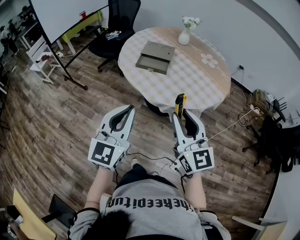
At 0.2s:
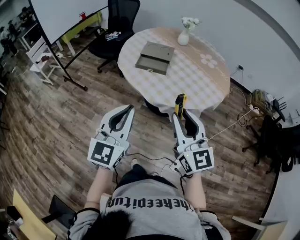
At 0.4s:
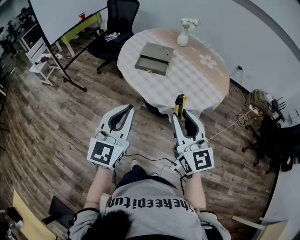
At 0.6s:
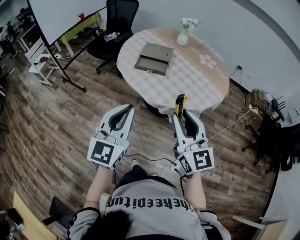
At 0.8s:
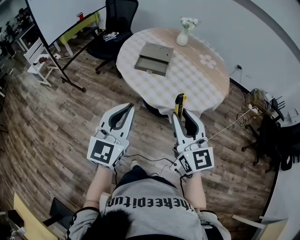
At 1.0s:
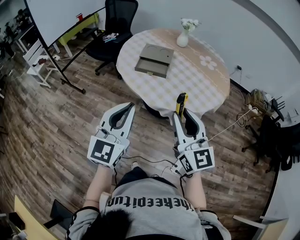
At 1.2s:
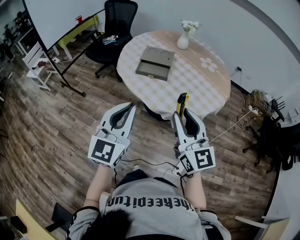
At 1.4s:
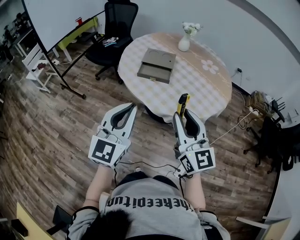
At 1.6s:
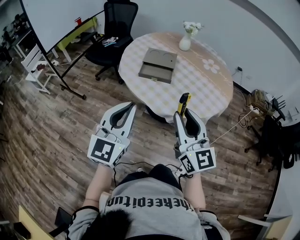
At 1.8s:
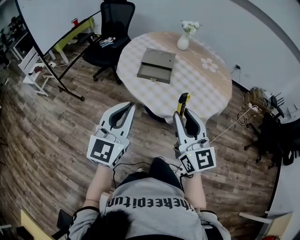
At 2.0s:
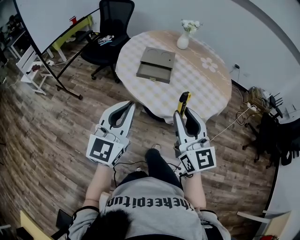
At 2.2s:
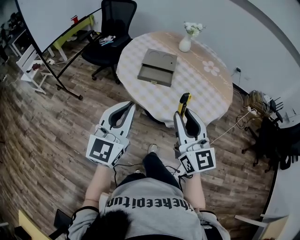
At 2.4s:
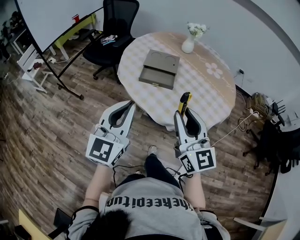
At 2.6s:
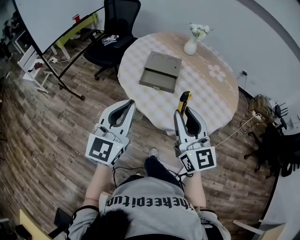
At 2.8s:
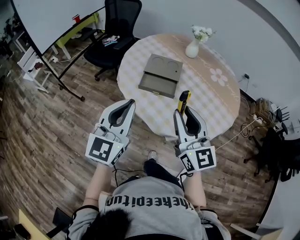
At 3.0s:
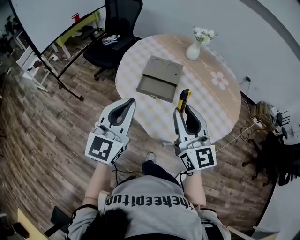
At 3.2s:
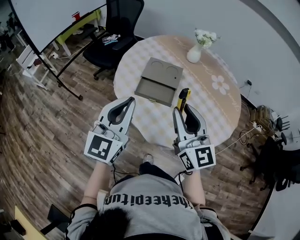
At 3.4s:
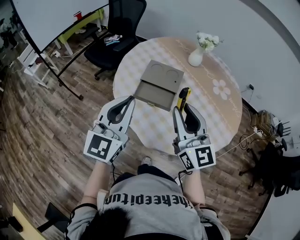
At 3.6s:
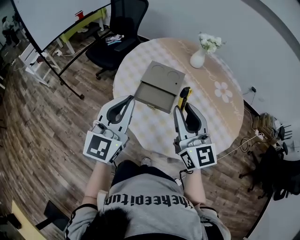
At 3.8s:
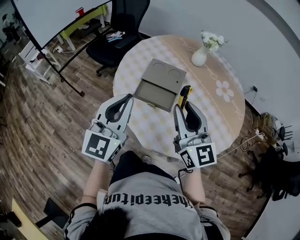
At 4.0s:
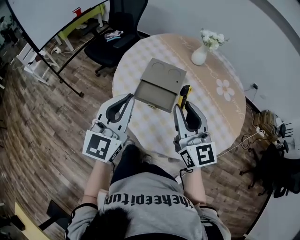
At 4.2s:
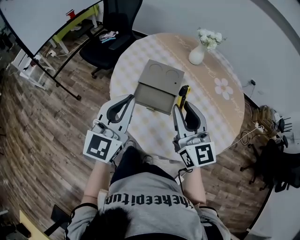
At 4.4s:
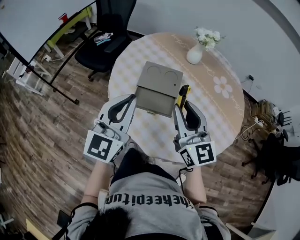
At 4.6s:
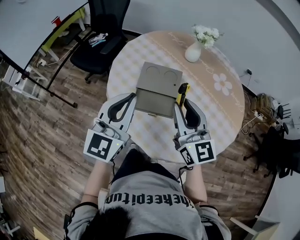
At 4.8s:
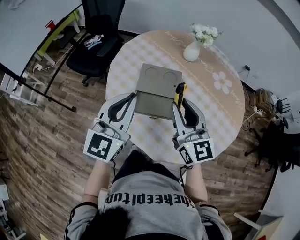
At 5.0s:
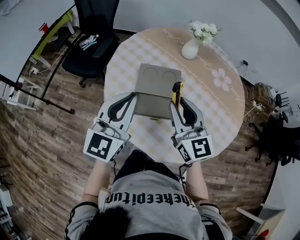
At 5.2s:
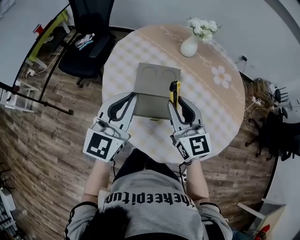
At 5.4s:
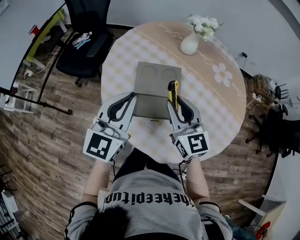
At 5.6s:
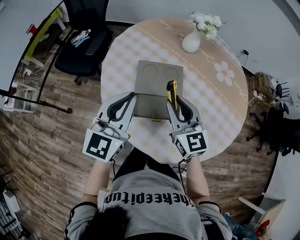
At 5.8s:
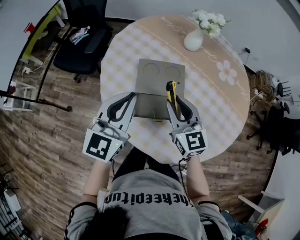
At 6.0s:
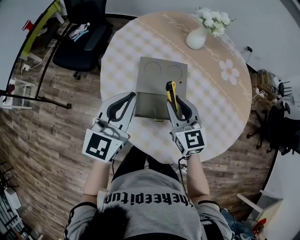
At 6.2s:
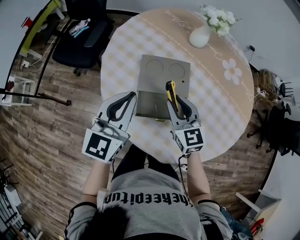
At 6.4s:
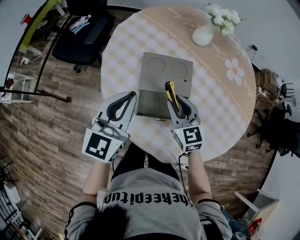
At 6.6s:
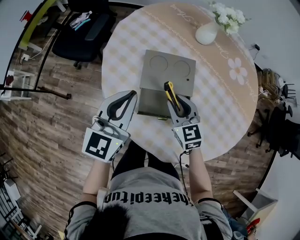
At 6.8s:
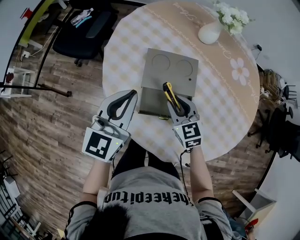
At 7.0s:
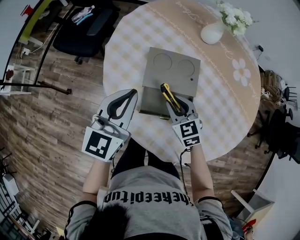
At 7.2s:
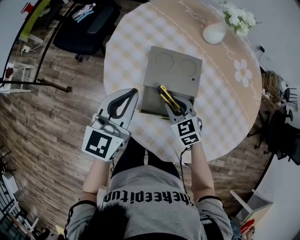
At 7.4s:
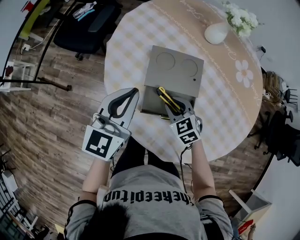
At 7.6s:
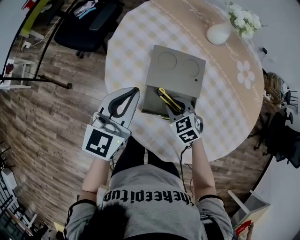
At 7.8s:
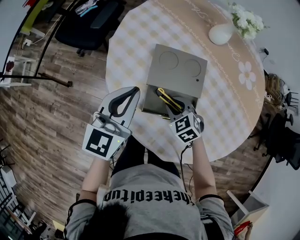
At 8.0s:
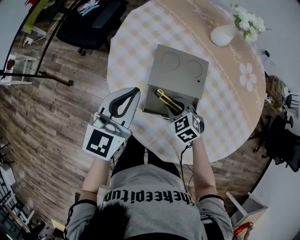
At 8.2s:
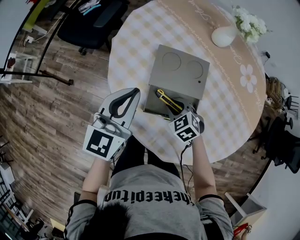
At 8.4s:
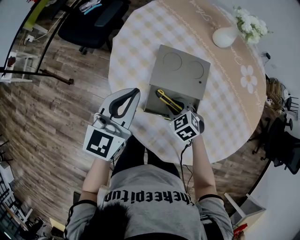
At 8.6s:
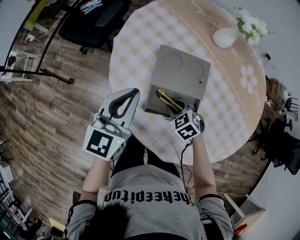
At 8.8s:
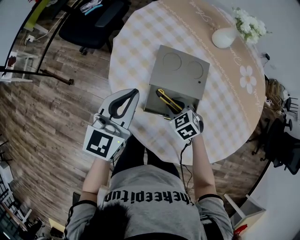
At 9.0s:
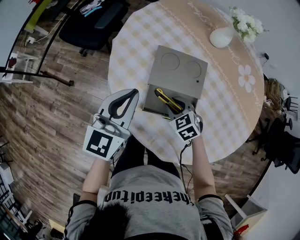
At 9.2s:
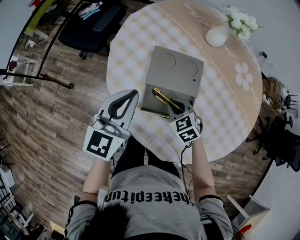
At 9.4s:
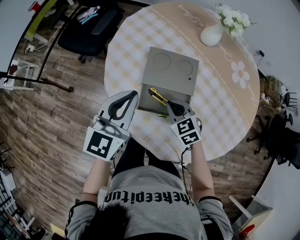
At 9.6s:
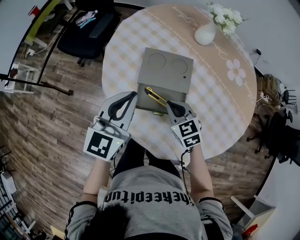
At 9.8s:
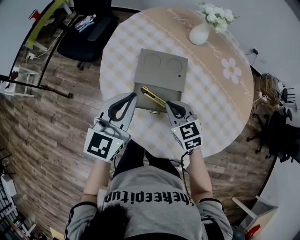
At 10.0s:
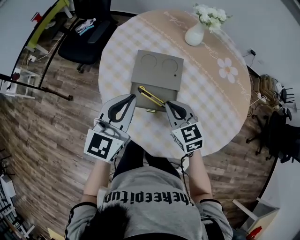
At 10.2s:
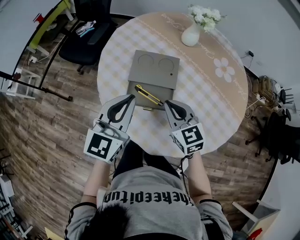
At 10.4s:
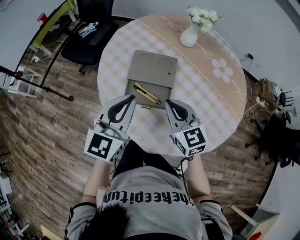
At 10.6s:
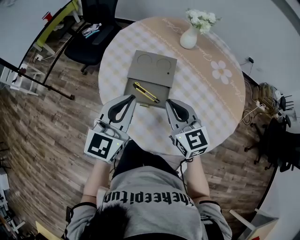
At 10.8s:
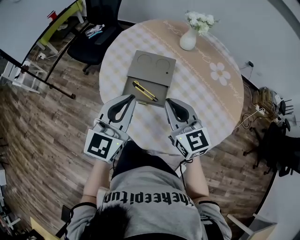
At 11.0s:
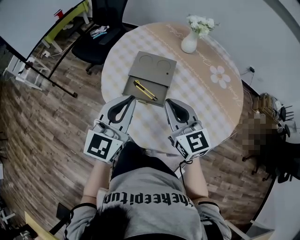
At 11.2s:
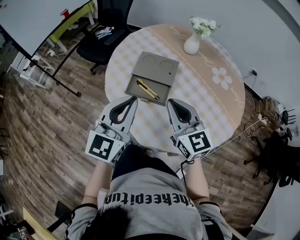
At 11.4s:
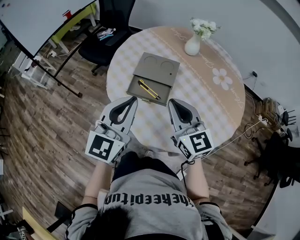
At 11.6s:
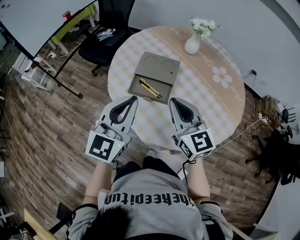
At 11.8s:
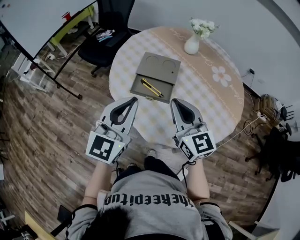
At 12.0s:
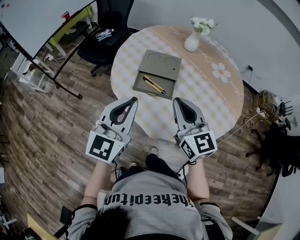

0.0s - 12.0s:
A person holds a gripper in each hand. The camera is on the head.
0.0s - 1.6s: The left gripper shifts approximately 10 cm forward and to the left, while the right gripper moves forward, some 5 cm.
1.6s - 3.0s: Both grippers move forward, some 20 cm.
3.0s - 4.4s: Both grippers move forward, some 15 cm.
4.4s - 6.0s: The right gripper travels downward and forward by some 20 cm, and swivels about 20 degrees, while the left gripper shifts some 15 cm forward and downward.
6.0s - 7.6s: The left gripper is displaced downward by roughly 5 cm. Meanwhile the right gripper heads downward, covering some 15 cm, and angles its fingers downward, by roughly 40 degrees.
7.6s - 9.0s: The grippers make only small movements.
9.0s - 10.4s: The right gripper is displaced upward and backward by about 20 cm, points its fingers approximately 40 degrees further upward, and closes up. The left gripper goes about 15 cm backward, to the right and upward.
10.4s - 12.0s: The right gripper is displaced backward and upward by roughly 15 cm; the left gripper moves backward, some 15 cm.

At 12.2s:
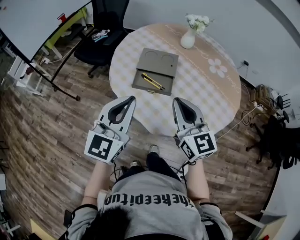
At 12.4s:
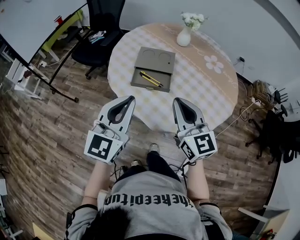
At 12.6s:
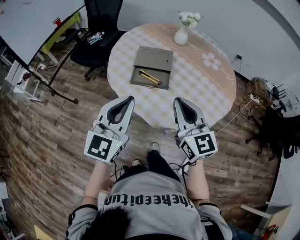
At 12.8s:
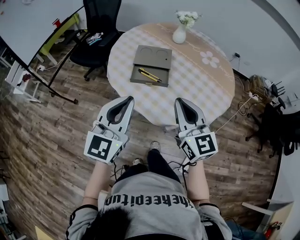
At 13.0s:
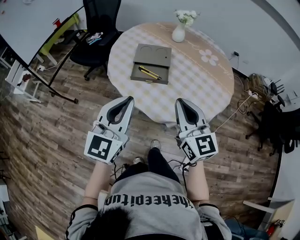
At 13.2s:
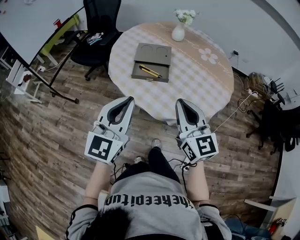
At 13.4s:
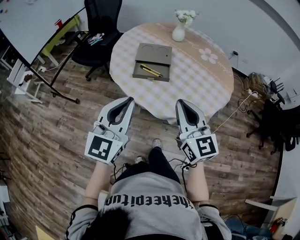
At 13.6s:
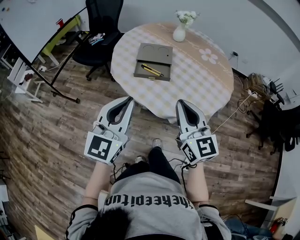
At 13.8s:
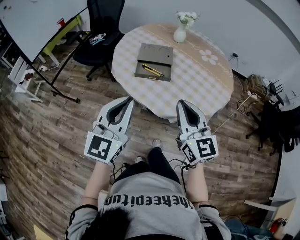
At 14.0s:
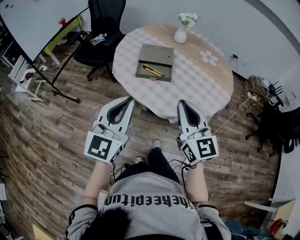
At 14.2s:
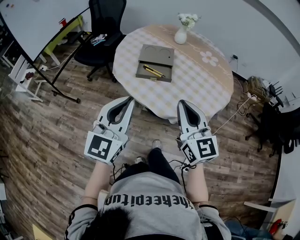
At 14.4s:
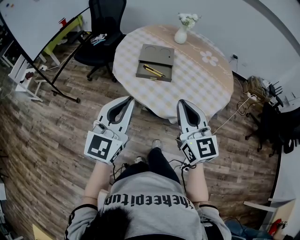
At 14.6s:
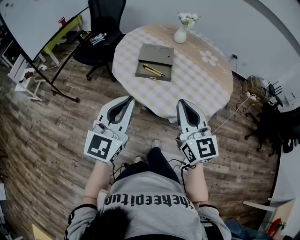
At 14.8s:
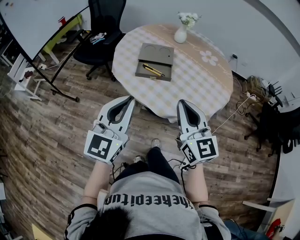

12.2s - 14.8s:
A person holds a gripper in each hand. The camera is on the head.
12.2s - 13.4s: The two grippers go about 10 cm backward.
13.4s - 14.8s: The grippers make only small movements.

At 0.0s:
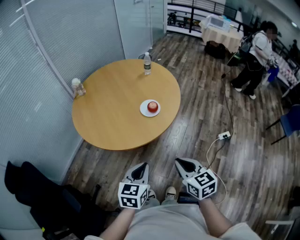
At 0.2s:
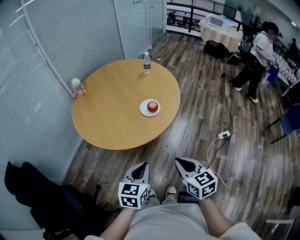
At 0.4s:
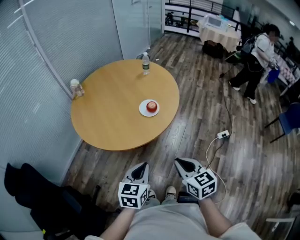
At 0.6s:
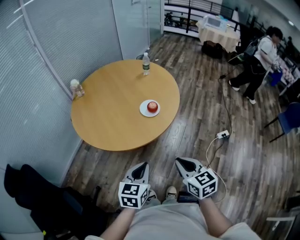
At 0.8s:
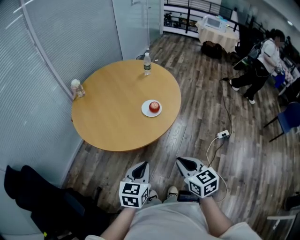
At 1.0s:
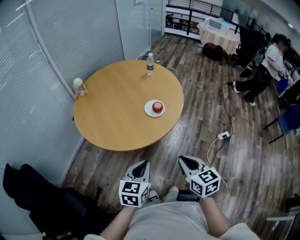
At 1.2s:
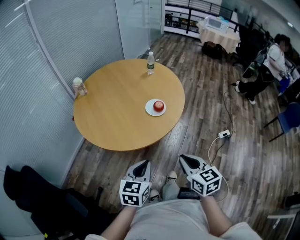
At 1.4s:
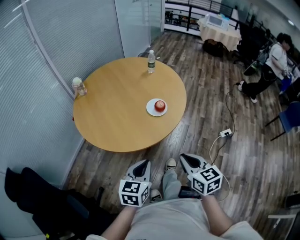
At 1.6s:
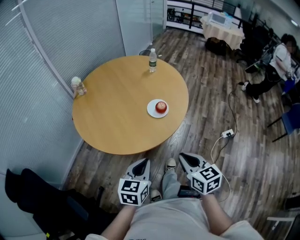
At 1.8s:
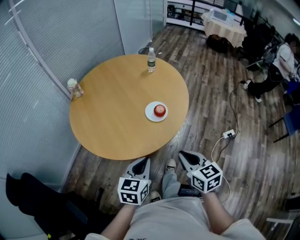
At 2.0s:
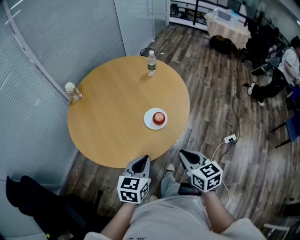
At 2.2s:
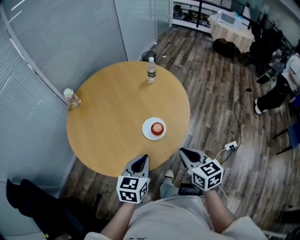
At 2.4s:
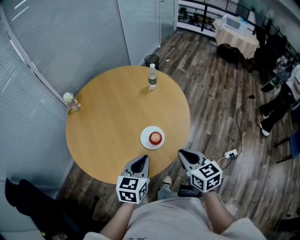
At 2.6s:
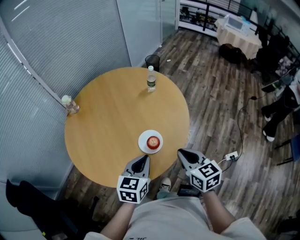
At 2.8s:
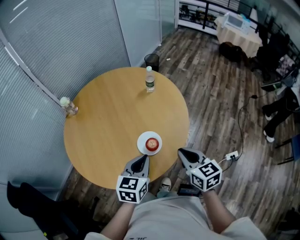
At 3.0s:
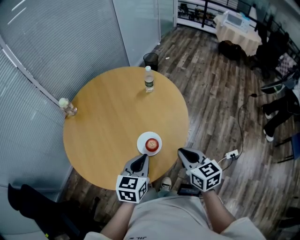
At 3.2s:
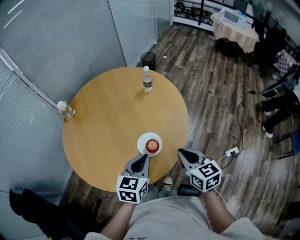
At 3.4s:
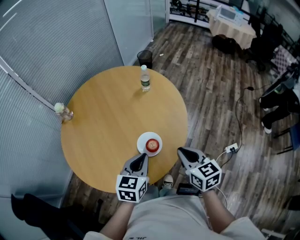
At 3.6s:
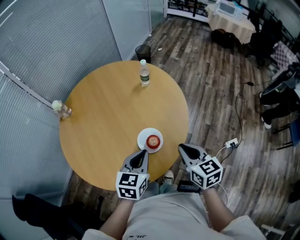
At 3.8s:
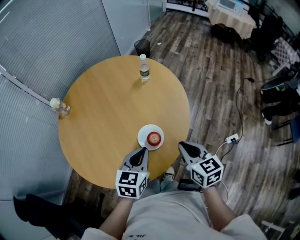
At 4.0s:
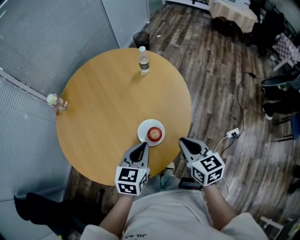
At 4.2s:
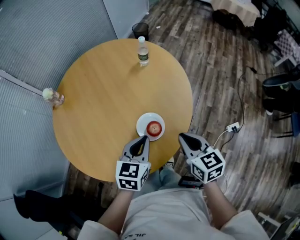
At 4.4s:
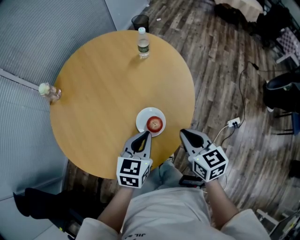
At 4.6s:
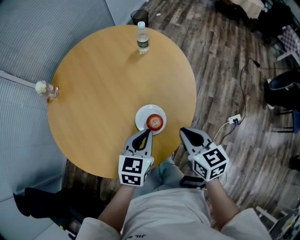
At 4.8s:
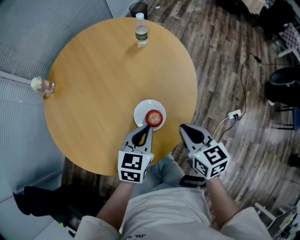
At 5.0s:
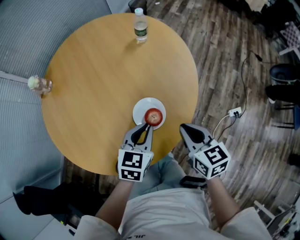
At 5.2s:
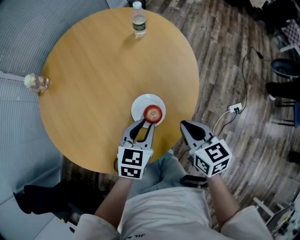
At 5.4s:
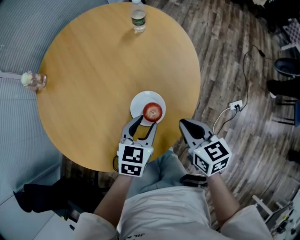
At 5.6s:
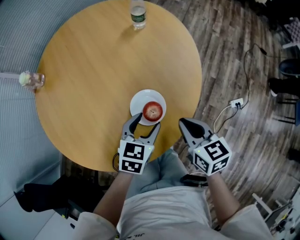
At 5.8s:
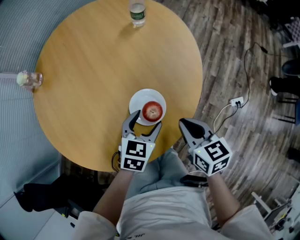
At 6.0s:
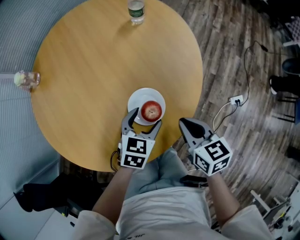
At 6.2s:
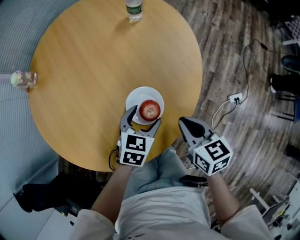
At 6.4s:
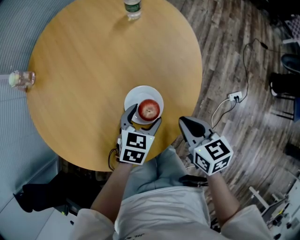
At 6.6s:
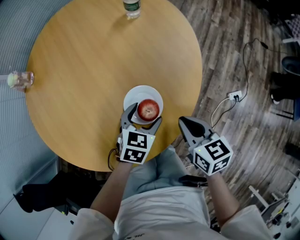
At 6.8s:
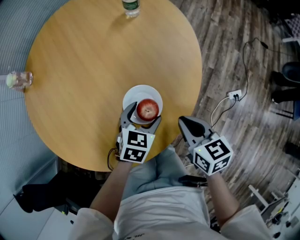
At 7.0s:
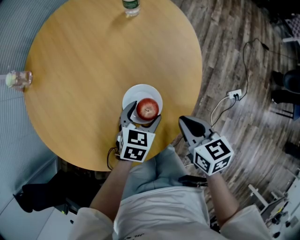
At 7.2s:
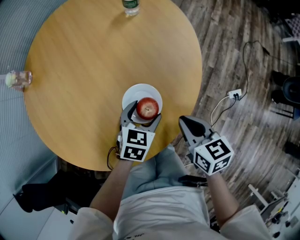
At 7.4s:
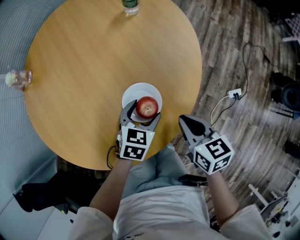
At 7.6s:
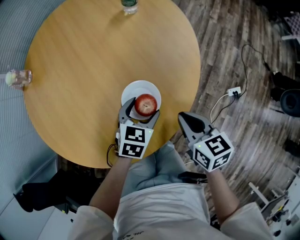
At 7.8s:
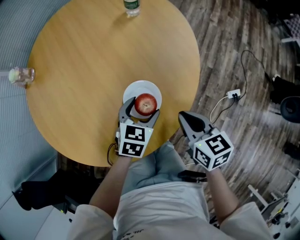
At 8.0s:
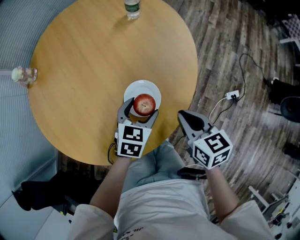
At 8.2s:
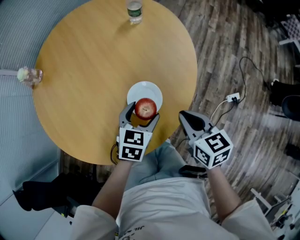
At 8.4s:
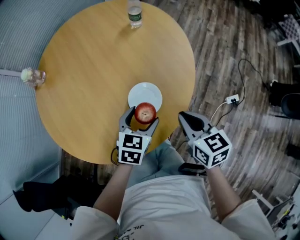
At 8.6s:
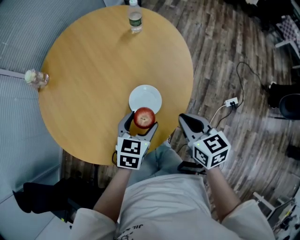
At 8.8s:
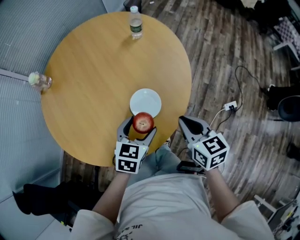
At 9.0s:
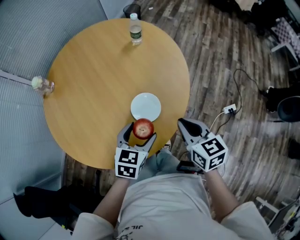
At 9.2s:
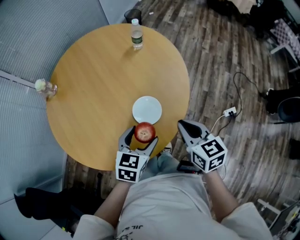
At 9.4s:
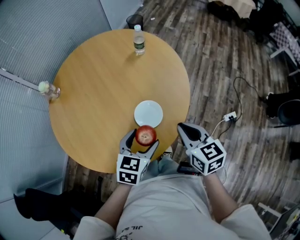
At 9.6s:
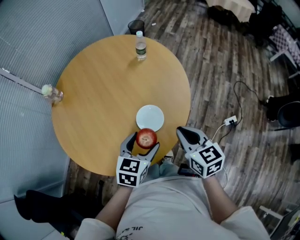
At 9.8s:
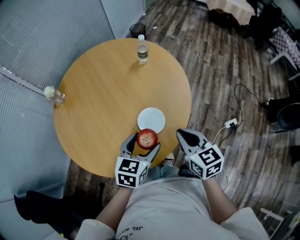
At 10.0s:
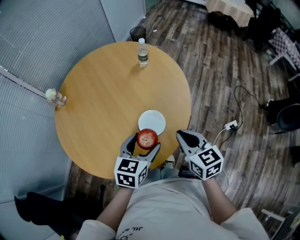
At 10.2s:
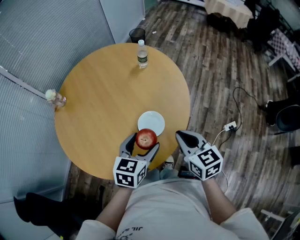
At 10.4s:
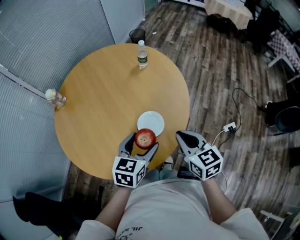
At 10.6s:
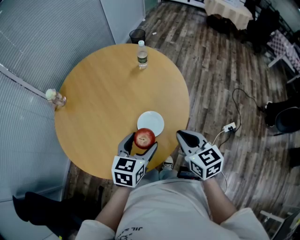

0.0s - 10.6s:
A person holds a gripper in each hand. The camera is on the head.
0.0s - 1.6s: The left gripper moves forward and to the left, roughly 10 cm. The right gripper goes some 5 cm forward.
1.6s - 3.0s: Both grippers travel together forward and to the right, some 30 cm.
3.0s - 4.6s: The left gripper moves downward and forward, about 10 cm; the right gripper travels downward by some 5 cm.
4.6s - 6.0s: The left gripper shifts approximately 10 cm downward, and opens; the right gripper is displaced downward by some 10 cm.
6.0s - 7.6s: There are only small adjustments of the grippers.
7.6s - 9.0s: The right gripper heads upward, covering roughly 10 cm; the left gripper heads upward and backward, covering approximately 15 cm.
9.0s - 10.6s: Both grippers move upward, some 5 cm.
